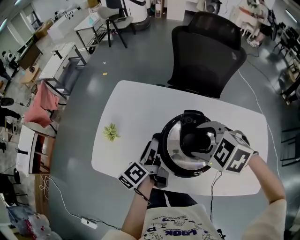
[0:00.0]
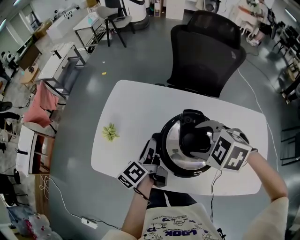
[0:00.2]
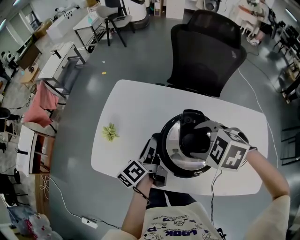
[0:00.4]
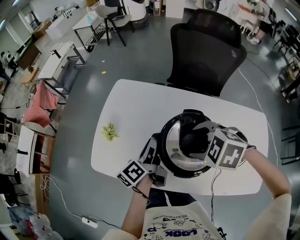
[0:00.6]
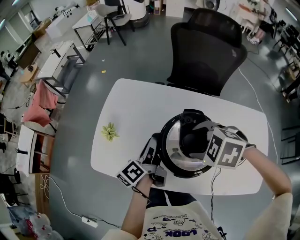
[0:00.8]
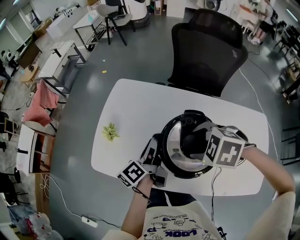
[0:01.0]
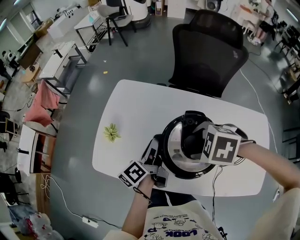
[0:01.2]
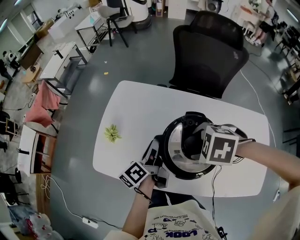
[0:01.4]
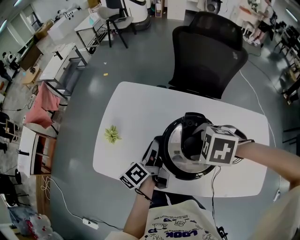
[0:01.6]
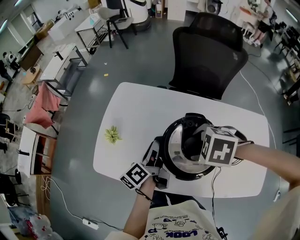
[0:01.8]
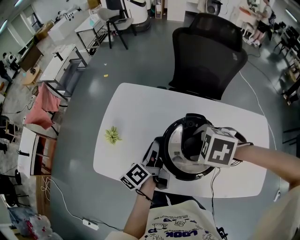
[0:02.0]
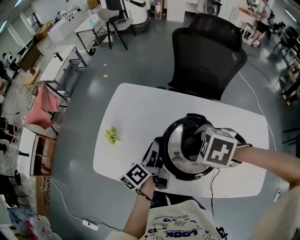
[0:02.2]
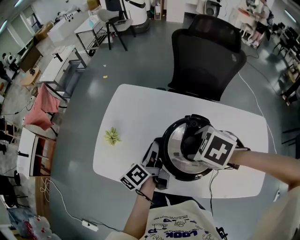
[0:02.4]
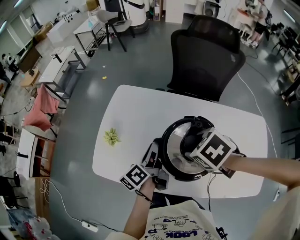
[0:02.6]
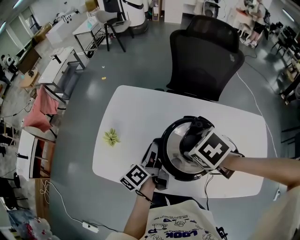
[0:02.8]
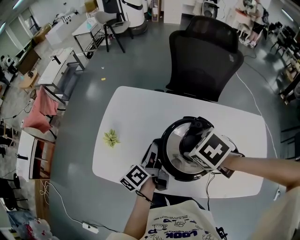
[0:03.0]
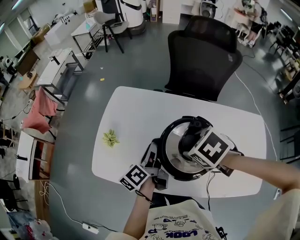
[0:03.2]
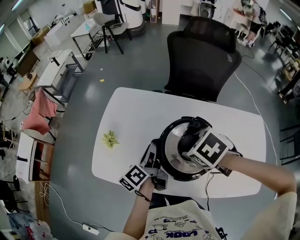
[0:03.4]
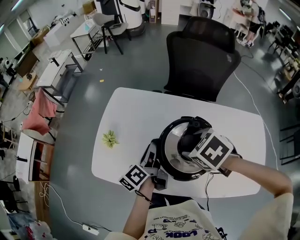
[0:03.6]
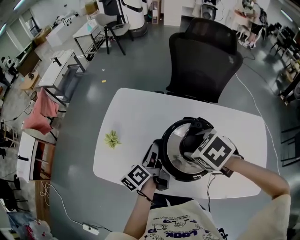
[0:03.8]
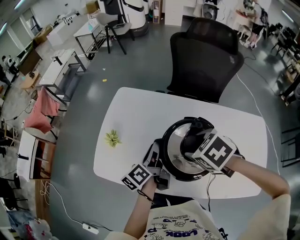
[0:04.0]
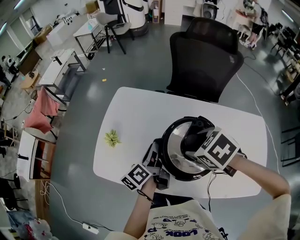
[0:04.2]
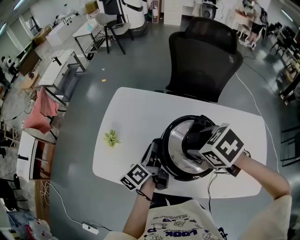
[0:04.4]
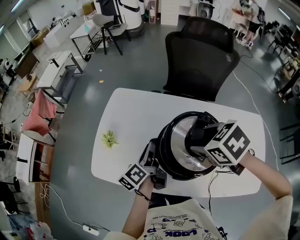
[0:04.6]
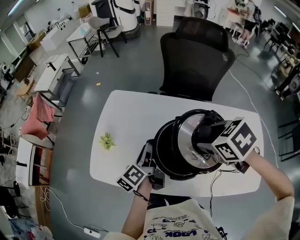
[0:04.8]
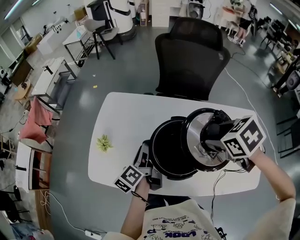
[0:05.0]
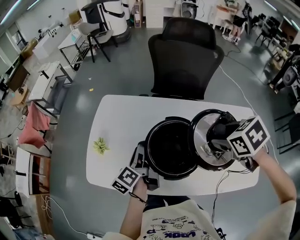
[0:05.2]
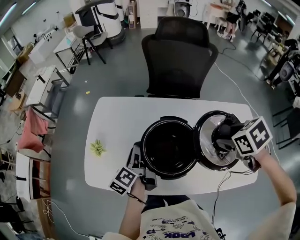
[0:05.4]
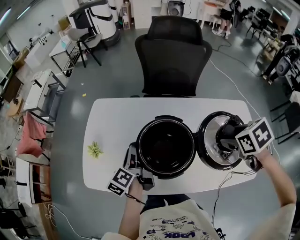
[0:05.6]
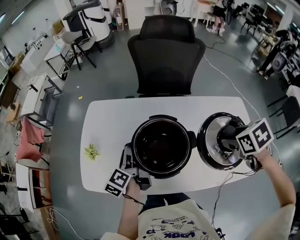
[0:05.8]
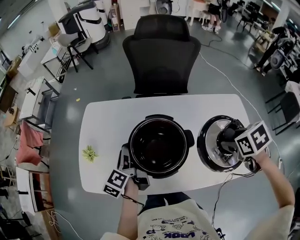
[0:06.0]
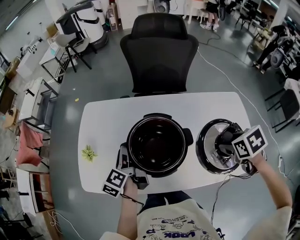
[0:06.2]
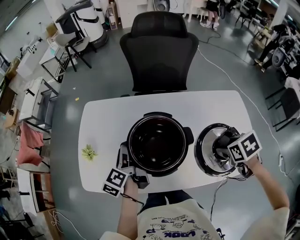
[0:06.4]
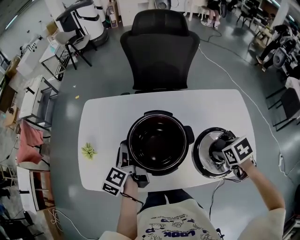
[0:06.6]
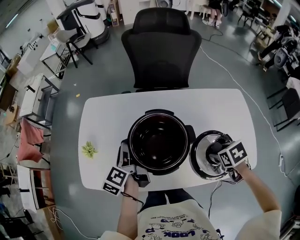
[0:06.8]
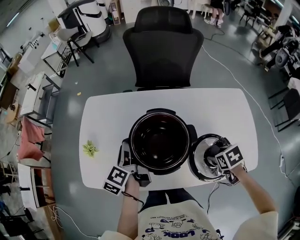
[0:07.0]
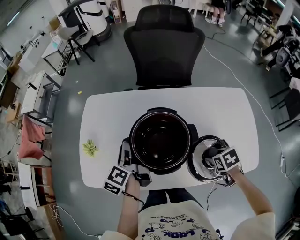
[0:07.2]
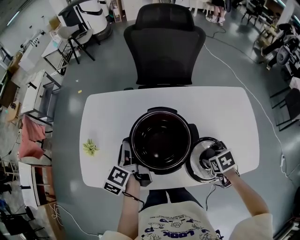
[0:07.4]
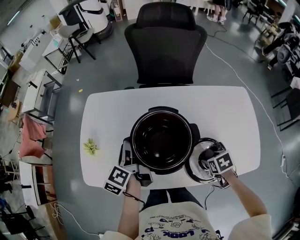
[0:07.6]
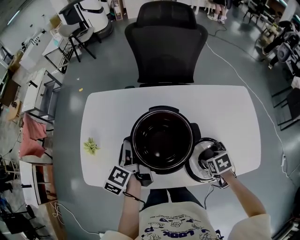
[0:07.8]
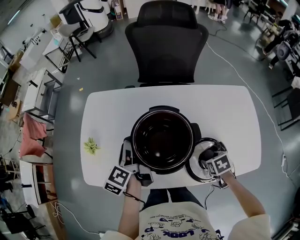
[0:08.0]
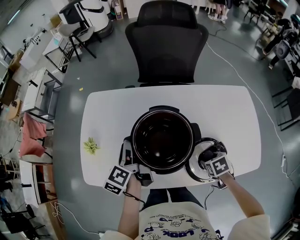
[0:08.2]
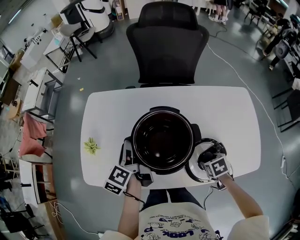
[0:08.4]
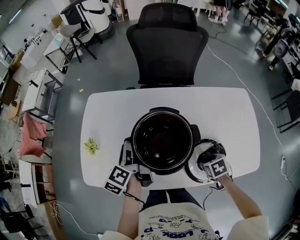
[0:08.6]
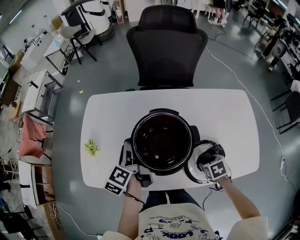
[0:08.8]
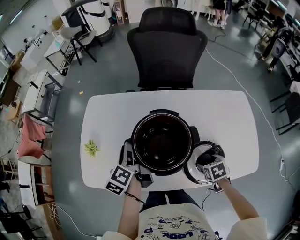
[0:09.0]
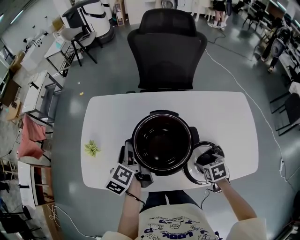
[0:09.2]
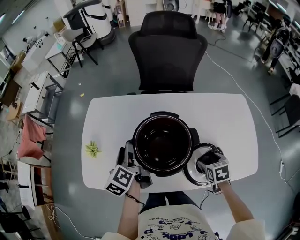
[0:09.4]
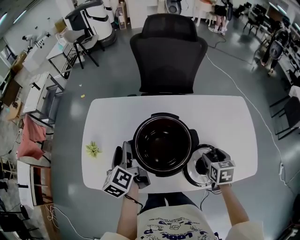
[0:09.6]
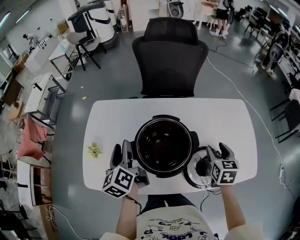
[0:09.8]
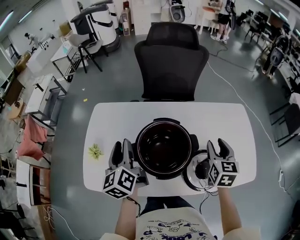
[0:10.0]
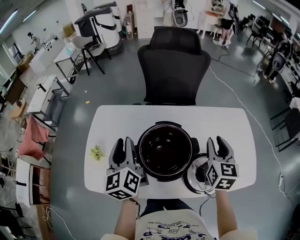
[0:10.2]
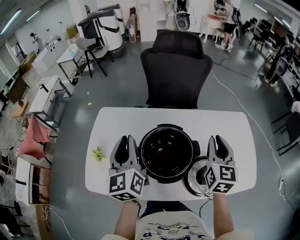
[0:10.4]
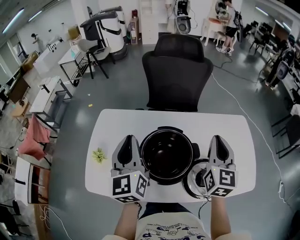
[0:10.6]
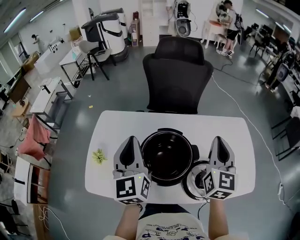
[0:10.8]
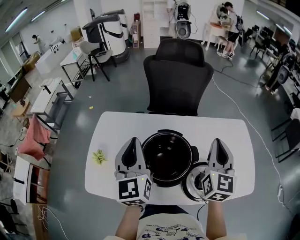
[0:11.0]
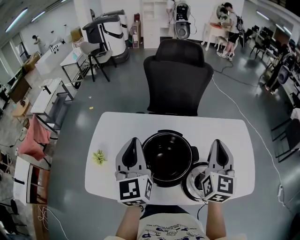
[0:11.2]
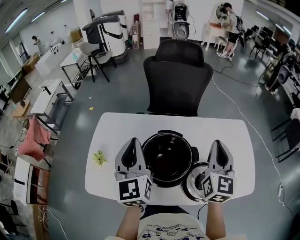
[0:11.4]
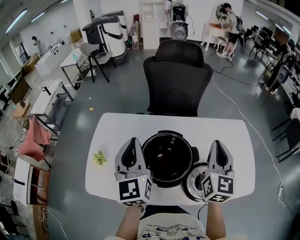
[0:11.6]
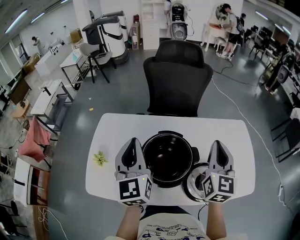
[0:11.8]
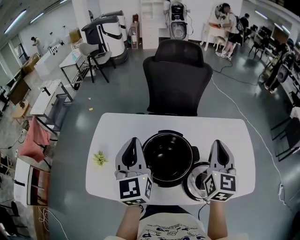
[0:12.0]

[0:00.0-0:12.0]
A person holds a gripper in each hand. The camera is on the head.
0:00.0 to 0:01.6: The left gripper closes.
0:01.6 to 0:03.0: The right gripper changes its angle by some 30 degrees.
0:03.0 to 0:04.4: The grippers move only a little.
0:04.4 to 0:06.0: The right gripper is displaced to the right and backward by approximately 30 cm, and turns by approximately 40 degrees.
0:06.0 to 0:07.6: The right gripper is displaced downward by approximately 20 cm.
0:07.6 to 0:09.0: The grippers make only small movements.
0:09.0 to 0:10.4: The right gripper shifts some 30 cm upward, points its fingers approximately 60 degrees further upward, and closes. The left gripper shifts approximately 20 cm upward, and changes its angle by roughly 40 degrees.
0:10.4 to 0:12.0: The grippers move only a little.

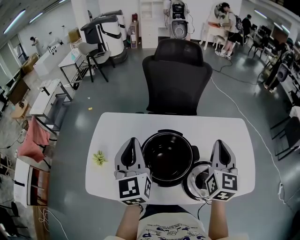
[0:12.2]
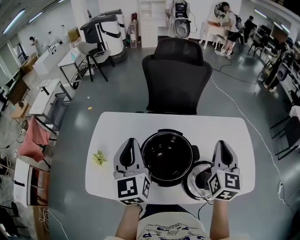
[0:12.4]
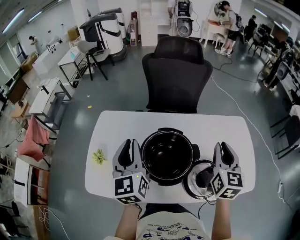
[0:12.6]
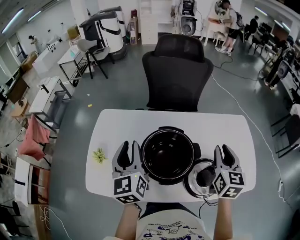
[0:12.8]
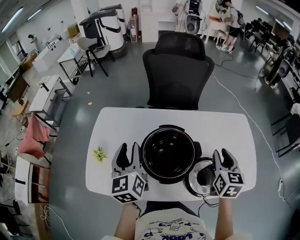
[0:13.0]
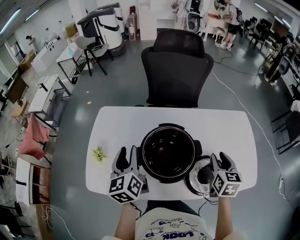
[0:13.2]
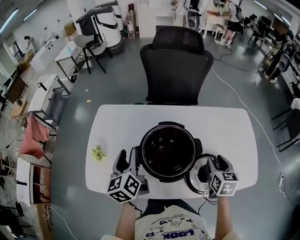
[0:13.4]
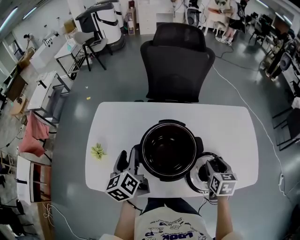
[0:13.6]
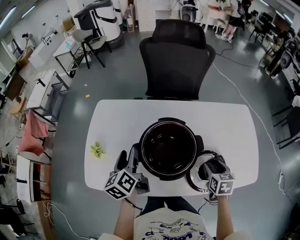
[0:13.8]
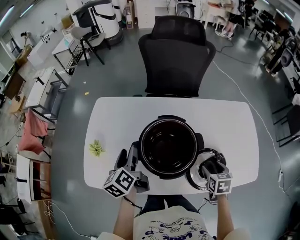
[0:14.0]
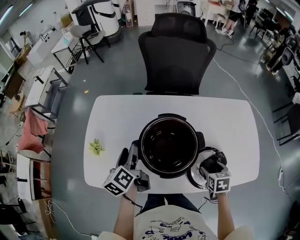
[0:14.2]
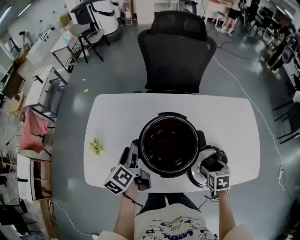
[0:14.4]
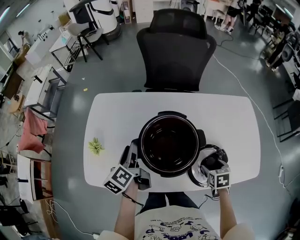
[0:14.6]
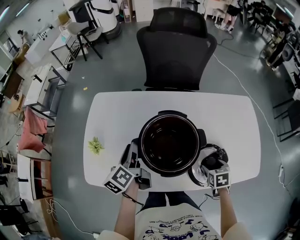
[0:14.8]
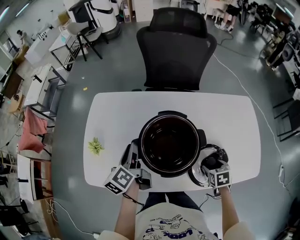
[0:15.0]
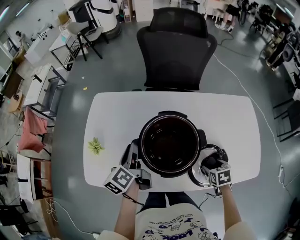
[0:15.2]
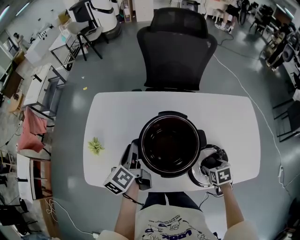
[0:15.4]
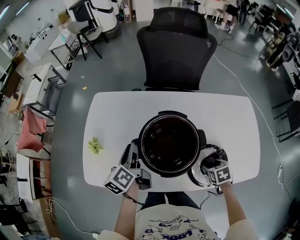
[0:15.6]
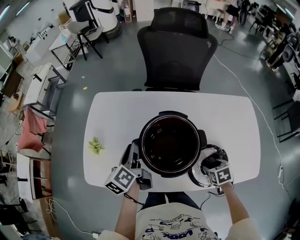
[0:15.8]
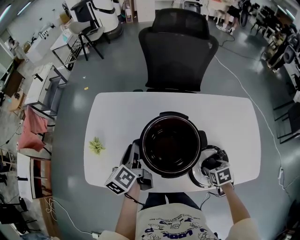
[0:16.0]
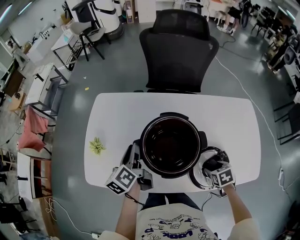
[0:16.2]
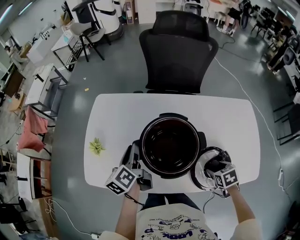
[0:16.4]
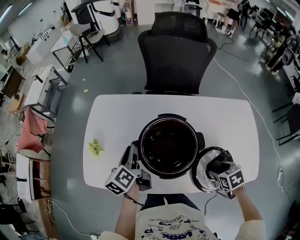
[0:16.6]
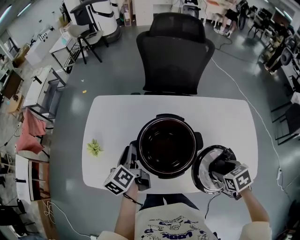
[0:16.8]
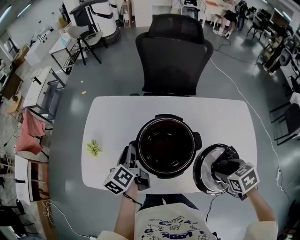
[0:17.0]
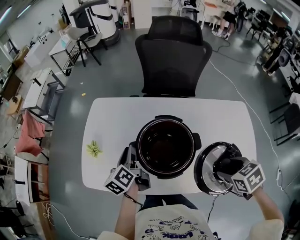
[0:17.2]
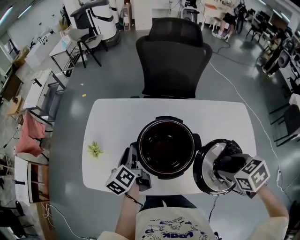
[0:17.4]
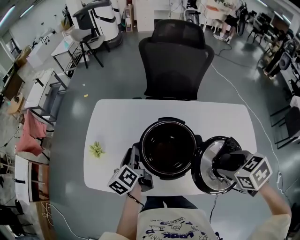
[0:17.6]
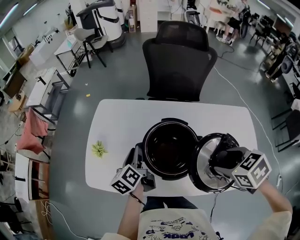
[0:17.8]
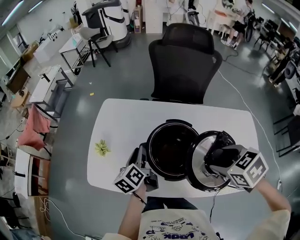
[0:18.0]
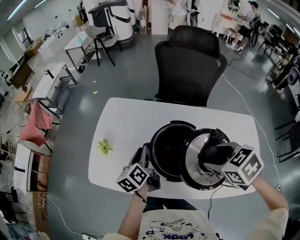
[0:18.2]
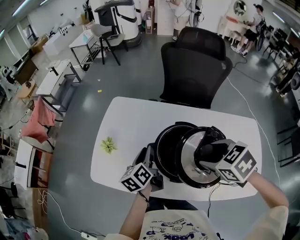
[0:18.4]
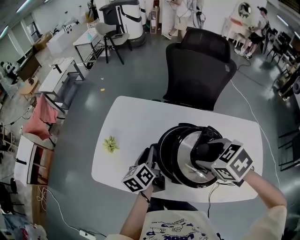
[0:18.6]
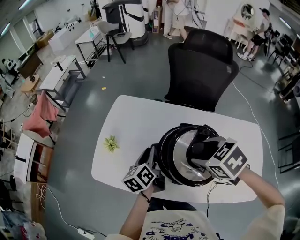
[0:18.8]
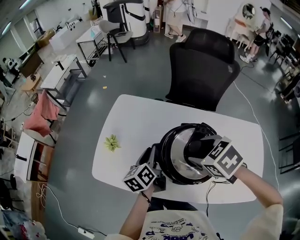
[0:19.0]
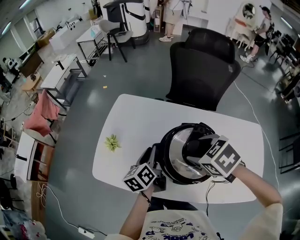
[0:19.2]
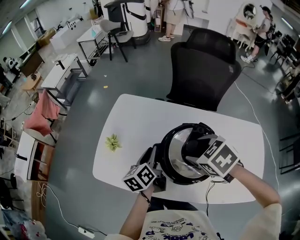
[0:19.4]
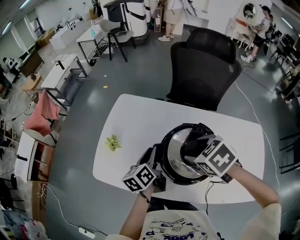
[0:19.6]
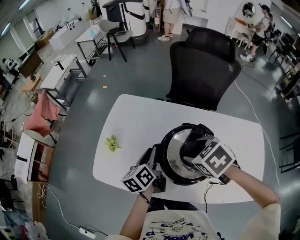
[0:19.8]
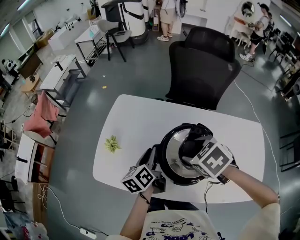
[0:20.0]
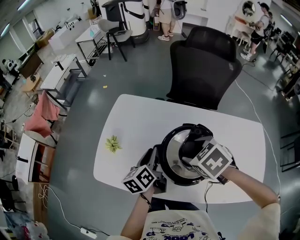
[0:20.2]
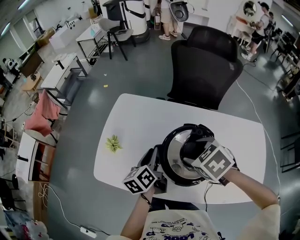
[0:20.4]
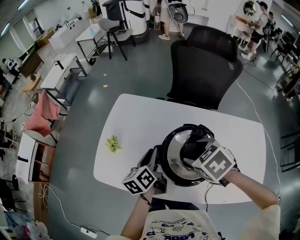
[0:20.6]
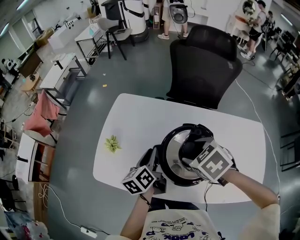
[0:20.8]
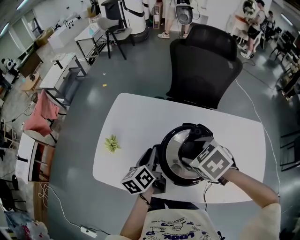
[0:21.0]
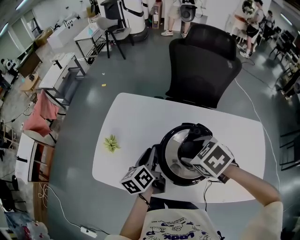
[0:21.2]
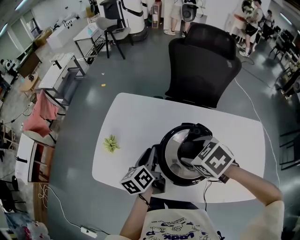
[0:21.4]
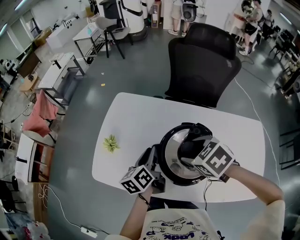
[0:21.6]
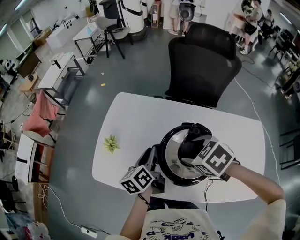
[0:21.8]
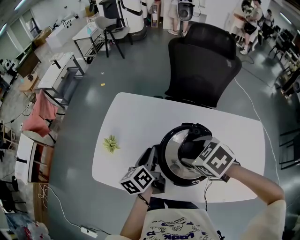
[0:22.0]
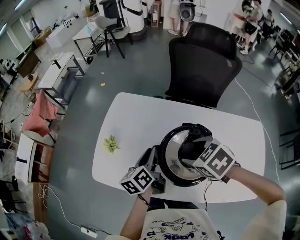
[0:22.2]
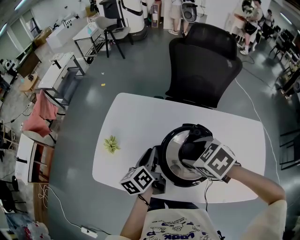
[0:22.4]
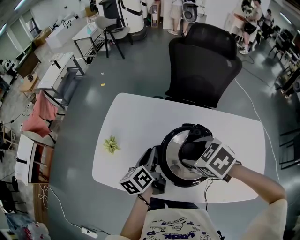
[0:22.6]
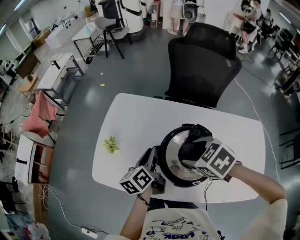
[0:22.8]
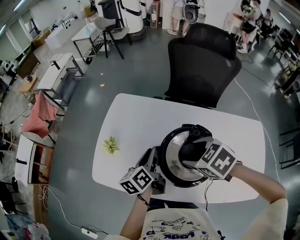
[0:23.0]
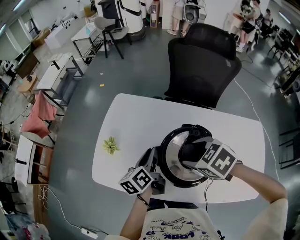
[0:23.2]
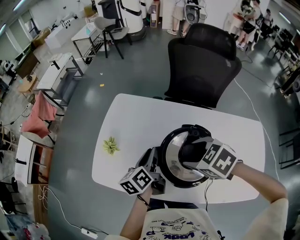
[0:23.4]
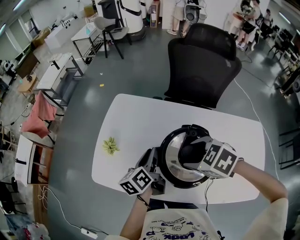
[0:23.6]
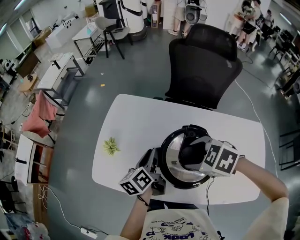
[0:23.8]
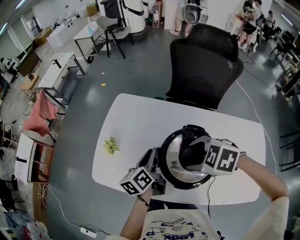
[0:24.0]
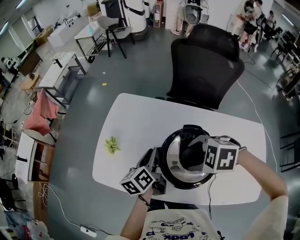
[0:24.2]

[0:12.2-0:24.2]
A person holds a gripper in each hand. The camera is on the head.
0:12.2 to 0:13.8: The two grippers go roughly 20 cm downward. The left gripper turns by approximately 40 degrees, and opens its fingers; the right gripper angles its fingers downward, by roughly 40 degrees, and opens up.
0:13.8 to 0:15.2: The right gripper is displaced downward by roughly 10 cm, and turns by approximately 20 degrees. Meanwhile the left gripper closes.
0:15.2 to 0:16.6: The right gripper goes approximately 5 cm upward.
0:16.6 to 0:18.2: The right gripper moves upward, to the left and forward, about 25 cm, and turns by about 30 degrees.
0:18.2 to 0:19.8: The right gripper is displaced forward and to the left by some 10 cm.
0:19.8 to 0:21.2: Neither gripper changes place.
0:21.2 to 0:22.6: Both grippers stay put.
0:22.6 to 0:24.2: The right gripper rotates some 30 degrees.
